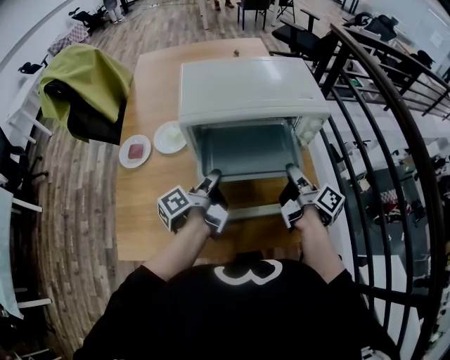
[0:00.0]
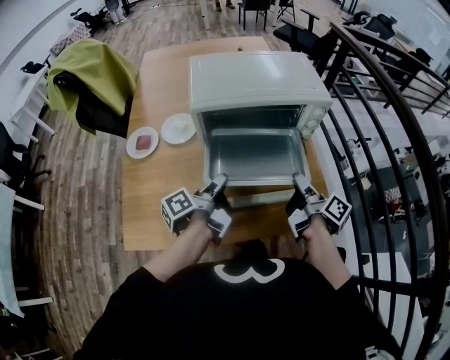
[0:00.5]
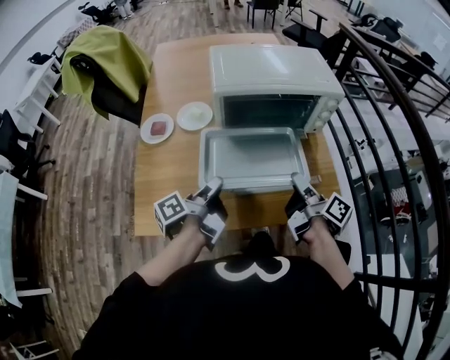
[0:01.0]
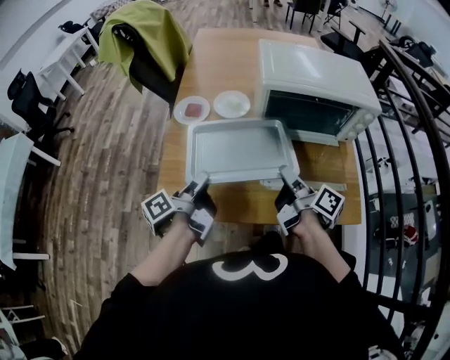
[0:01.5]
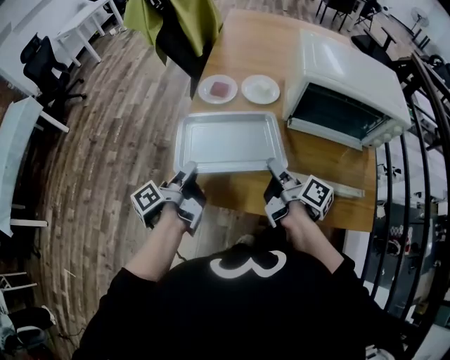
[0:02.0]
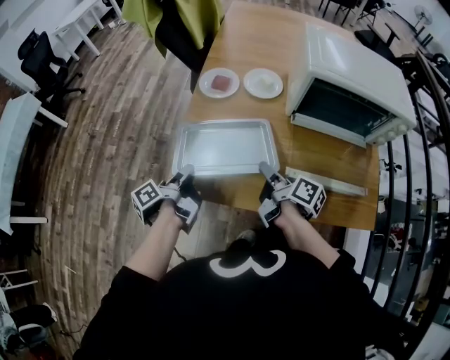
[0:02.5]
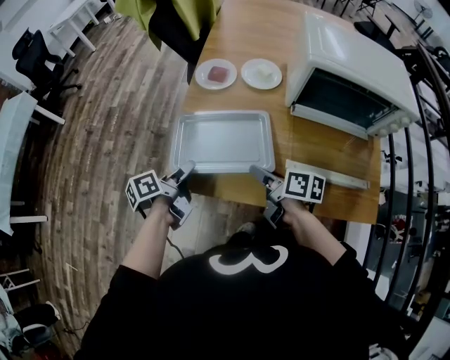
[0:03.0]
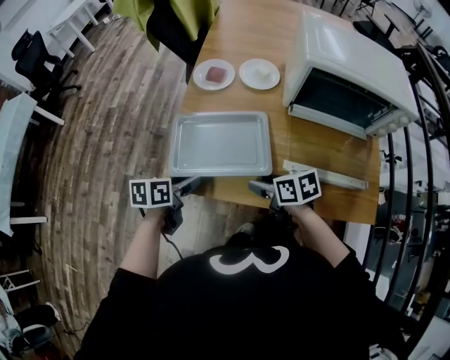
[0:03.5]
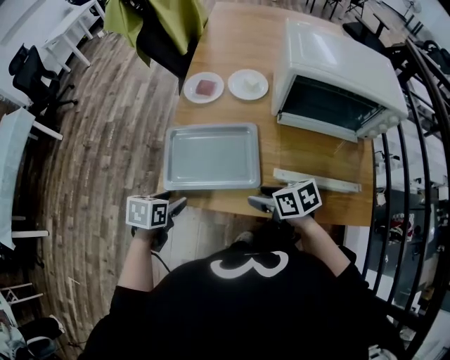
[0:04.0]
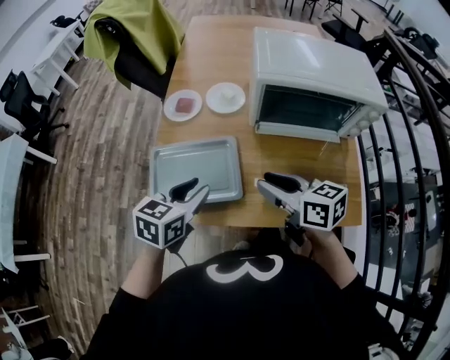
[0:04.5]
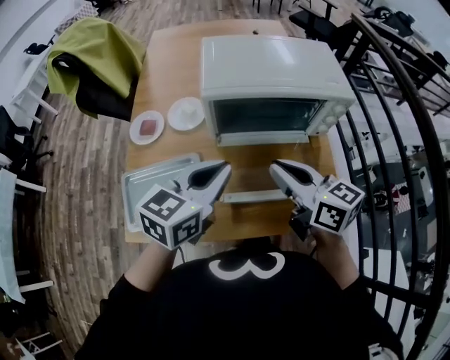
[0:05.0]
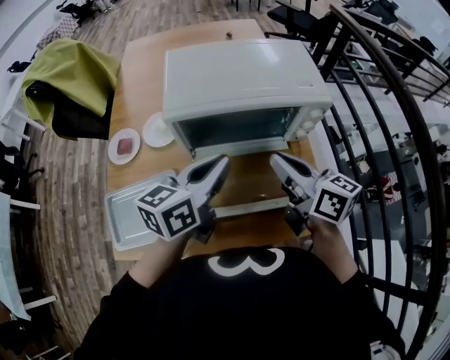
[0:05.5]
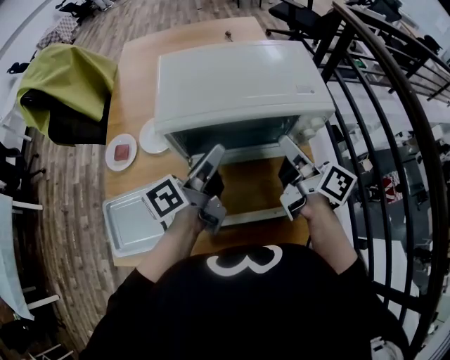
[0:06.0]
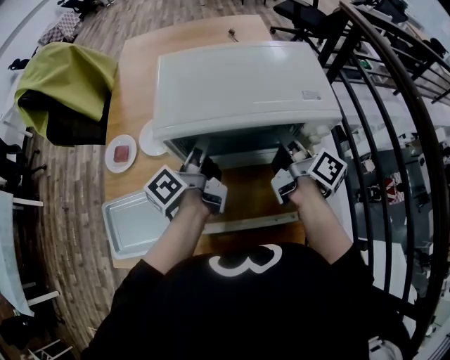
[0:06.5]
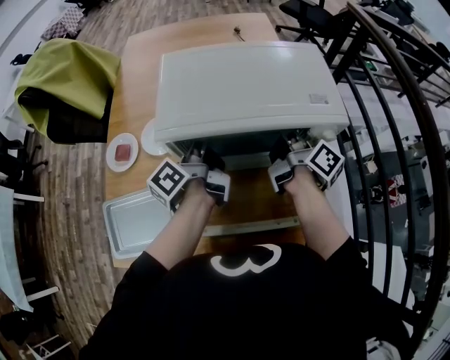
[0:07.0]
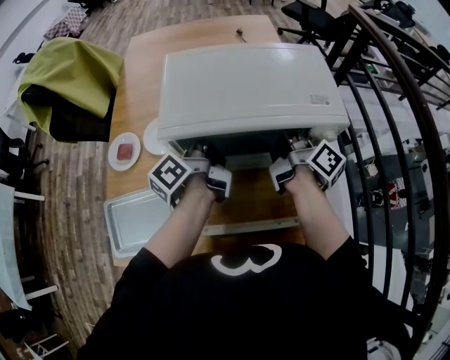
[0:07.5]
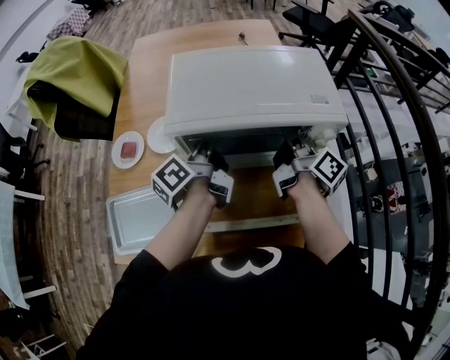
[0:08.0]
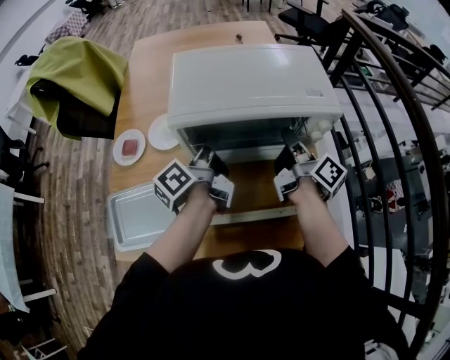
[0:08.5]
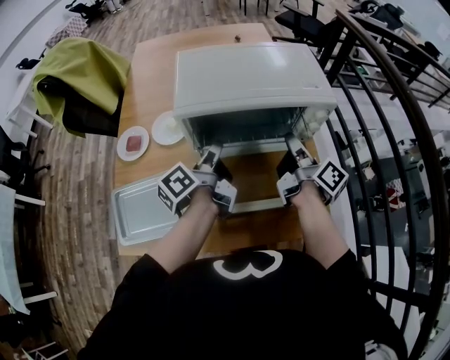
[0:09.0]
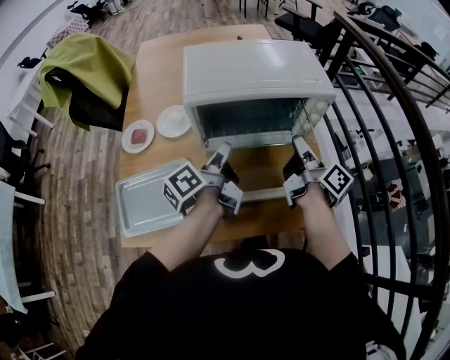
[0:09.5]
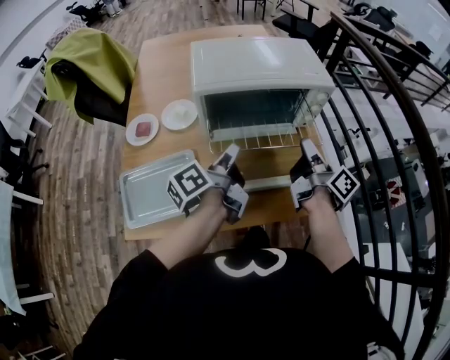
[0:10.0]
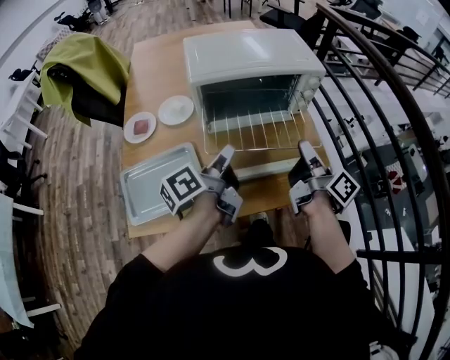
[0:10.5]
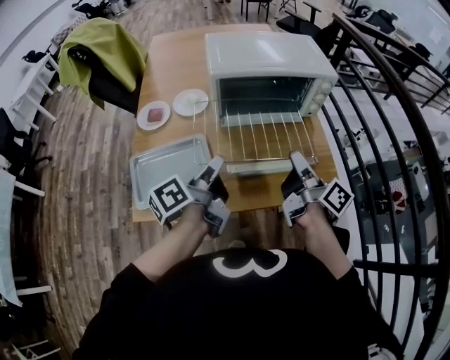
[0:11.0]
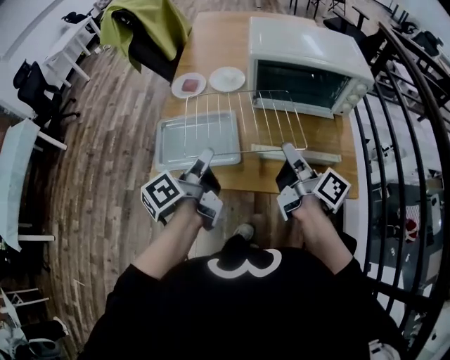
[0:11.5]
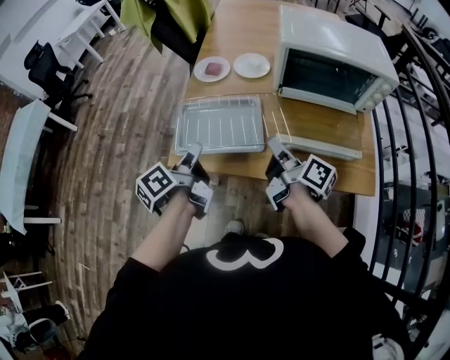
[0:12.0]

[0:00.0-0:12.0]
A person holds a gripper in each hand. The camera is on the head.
0:00.0 to 0:02.0: The right gripper shifts by about 35 cm, and swivels approximately 30 degrees. Meanwhile the left gripper ends up approximately 35 cm from where it was, and swivels some 20 degrees.
0:02.0 to 0:04.0: Both grippers travel together downward and backward, about 10 cm. The left gripper tips its fingers downward by about 50 degrees, and opens up. The right gripper points its fingers some 30 degrees further downward, and opens up.
0:04.0 to 0:06.0: The two grippers travel together, roughly 40 cm. The right gripper tilts its fingers approximately 40 degrees upward, and closes up; the left gripper tilts its fingers approximately 60 degrees upward, and closes up.
0:06.0 to 0:08.0: Both grippers move forward, roughly 5 cm. The left gripper turns by roughly 20 degrees.
0:08.0 to 0:10.0: Both grippers travel together backward, some 20 cm.
0:10.0 to 0:12.0: The left gripper ends up about 35 cm from where it was, and rotates roughly 30 degrees, while the right gripper ends up some 30 cm from where it was, and changes its angle by approximately 30 degrees.

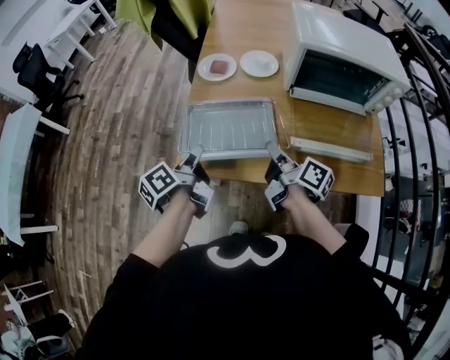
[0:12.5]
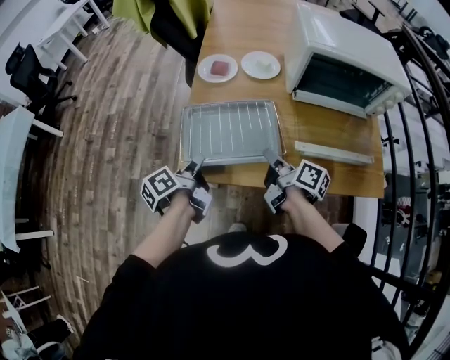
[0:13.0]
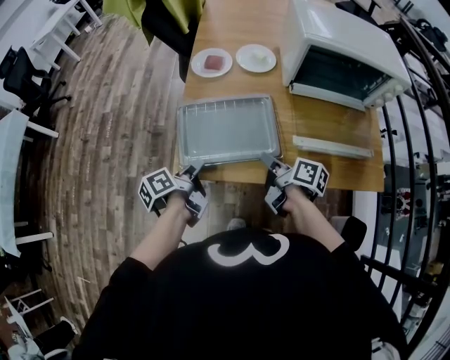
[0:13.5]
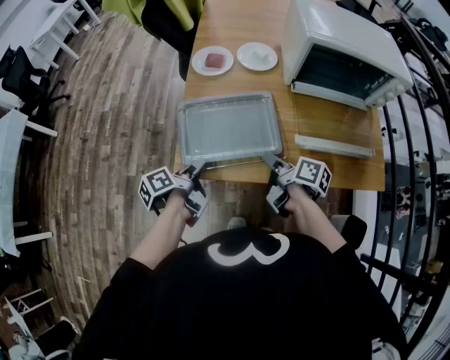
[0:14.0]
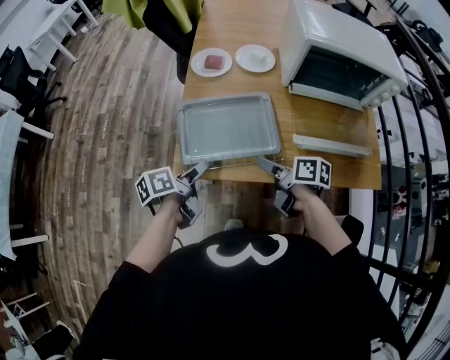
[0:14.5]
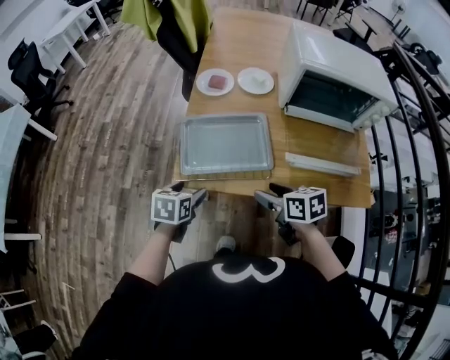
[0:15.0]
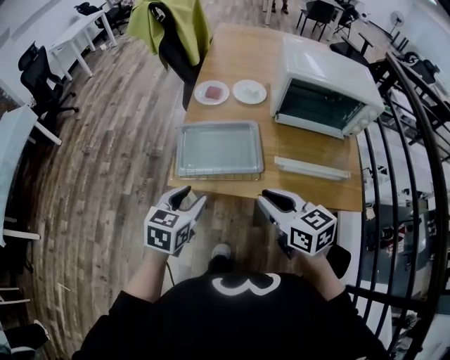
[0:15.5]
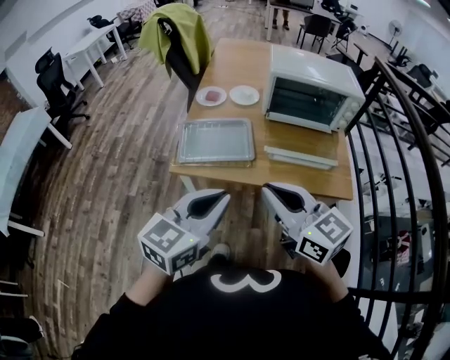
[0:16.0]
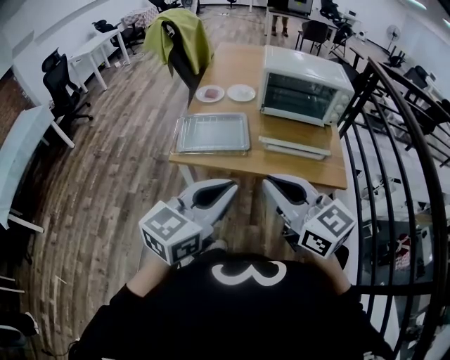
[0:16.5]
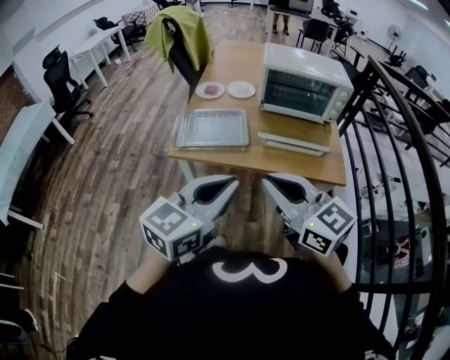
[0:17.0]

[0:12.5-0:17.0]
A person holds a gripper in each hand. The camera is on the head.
0:12.5 to 0:14.5: The grippers both shift downward by roughly 10 cm. The left gripper changes its angle by some 20 degrees, and opens, while the right gripper changes its angle by roughly 30 degrees, and opens.
0:14.5 to 0:17.0: The left gripper goes approximately 50 cm upward, backward and to the right, rotates around the line of its fingers by about 70 degrees, clockwise from behind, and closes; the right gripper is displaced upward and backward by about 40 cm, twists approximately 60 degrees counterclockwise, seen from behind, and closes up.

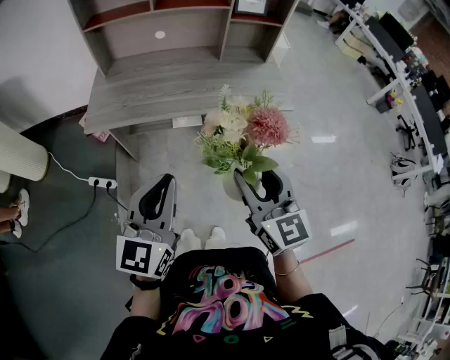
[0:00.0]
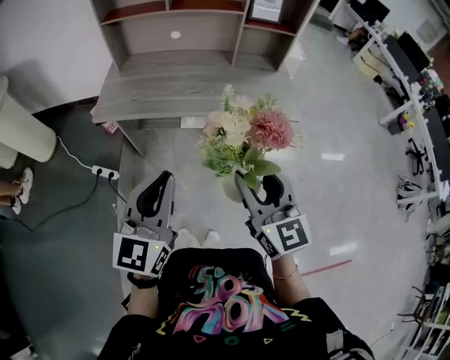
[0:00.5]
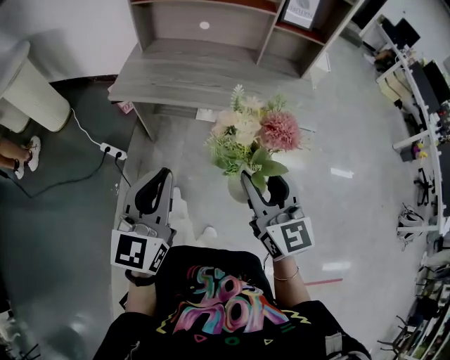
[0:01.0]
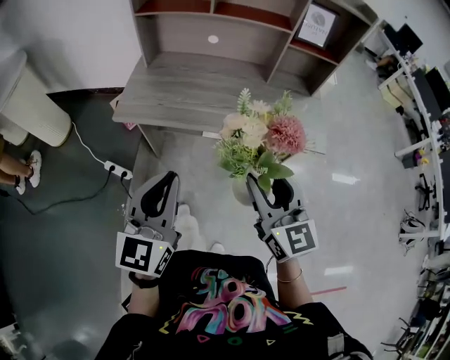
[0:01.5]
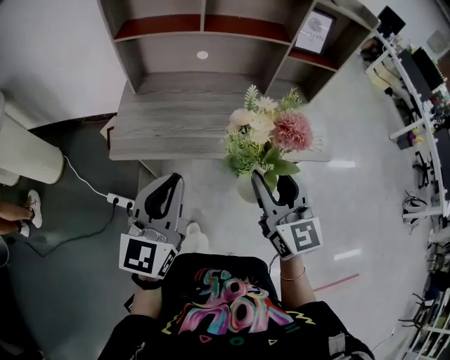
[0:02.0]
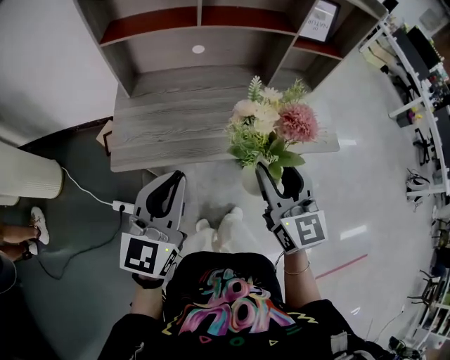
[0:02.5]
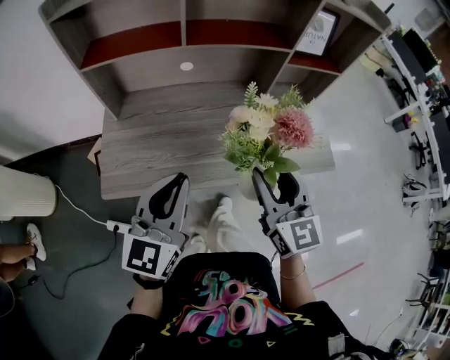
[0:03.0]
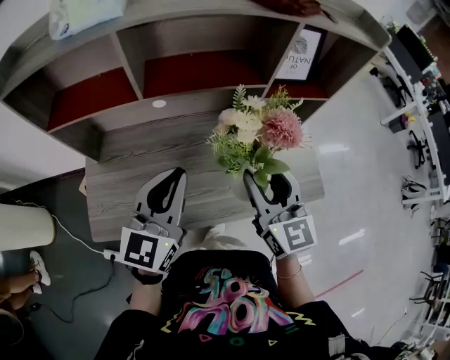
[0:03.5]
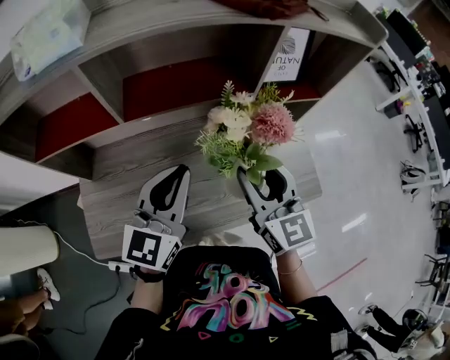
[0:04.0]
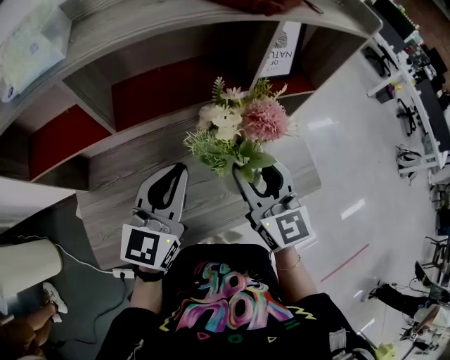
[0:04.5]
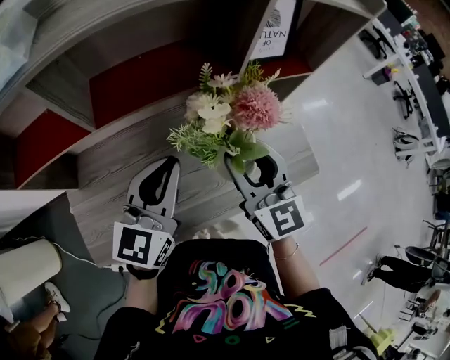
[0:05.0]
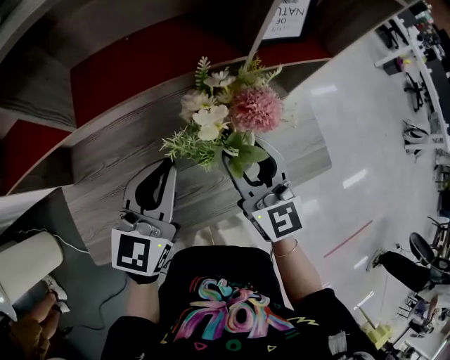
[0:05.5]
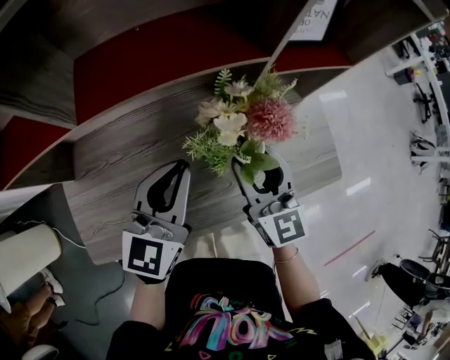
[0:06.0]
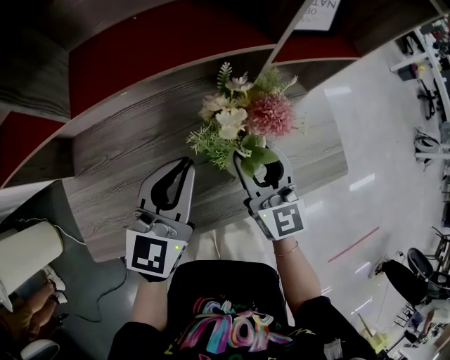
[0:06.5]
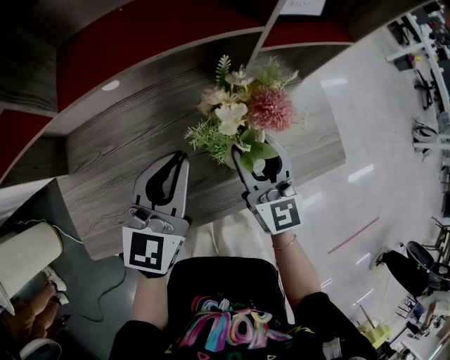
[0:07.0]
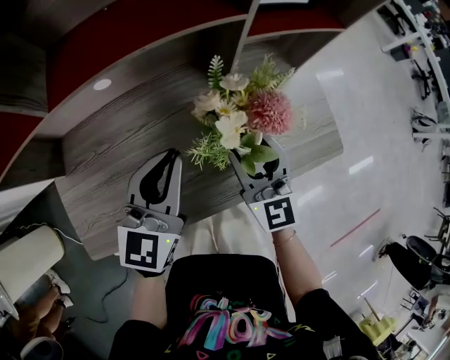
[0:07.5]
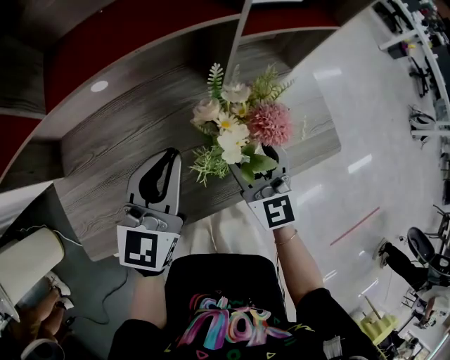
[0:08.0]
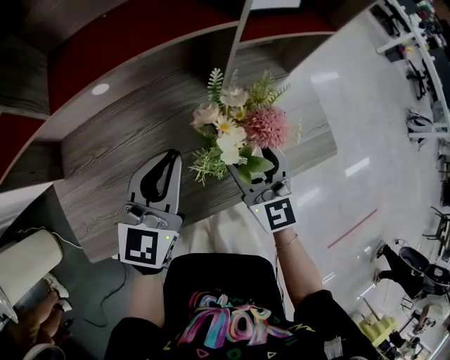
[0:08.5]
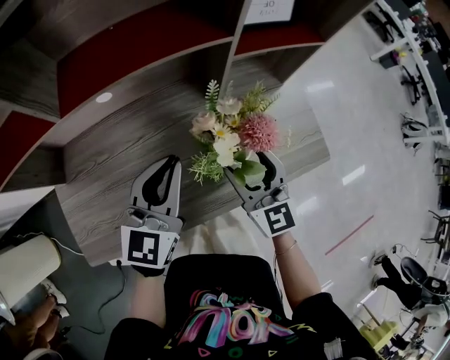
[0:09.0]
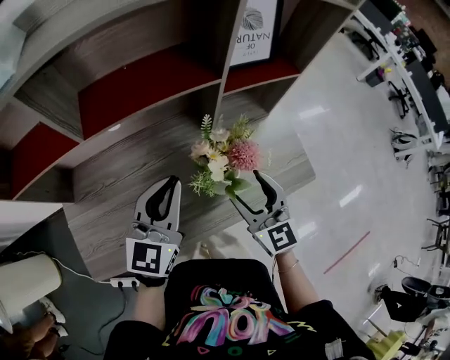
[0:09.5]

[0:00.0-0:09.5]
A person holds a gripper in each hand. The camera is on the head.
0:00.0 to 0:02.0: The left gripper is displaced forward, upward and to the left by roughly 40 cm. The right gripper moves forward and upward, approximately 40 cm.
0:02.0 to 0:04.0: The pair of grippers is taken forward, roughly 50 cm.
0:04.0 to 0:07.5: There are only small adjustments of the grippers.
0:07.5 to 0:09.5: The right gripper shifts by some 5 cm. The left gripper goes roughly 5 cm upward.
